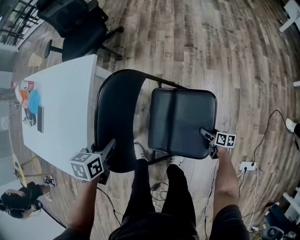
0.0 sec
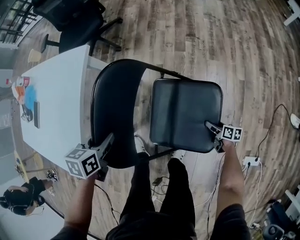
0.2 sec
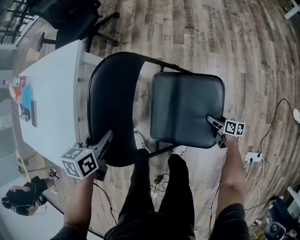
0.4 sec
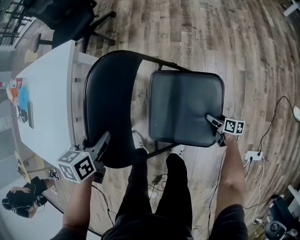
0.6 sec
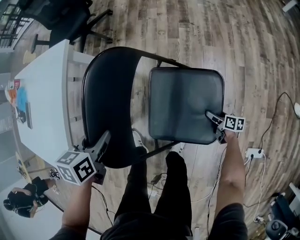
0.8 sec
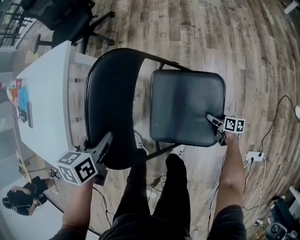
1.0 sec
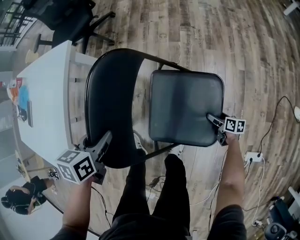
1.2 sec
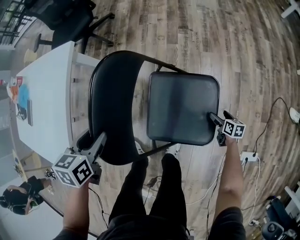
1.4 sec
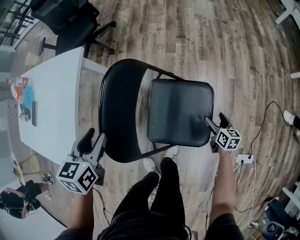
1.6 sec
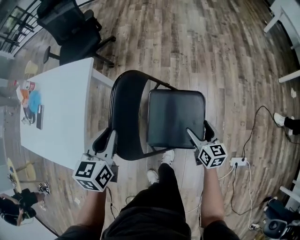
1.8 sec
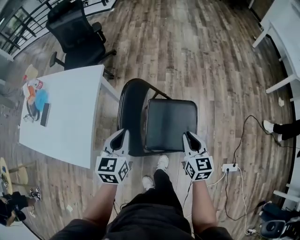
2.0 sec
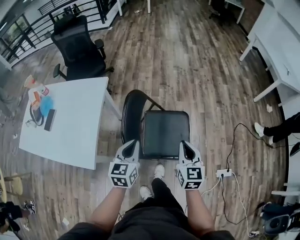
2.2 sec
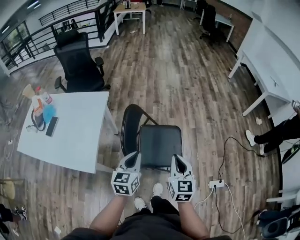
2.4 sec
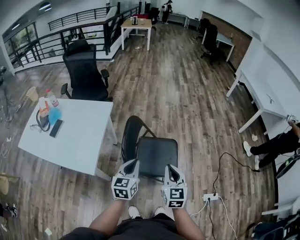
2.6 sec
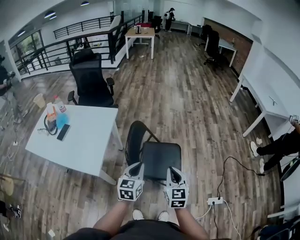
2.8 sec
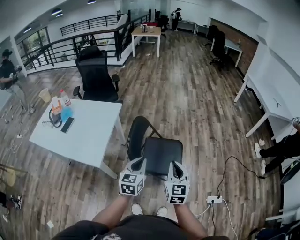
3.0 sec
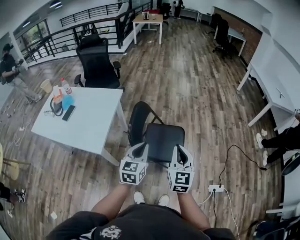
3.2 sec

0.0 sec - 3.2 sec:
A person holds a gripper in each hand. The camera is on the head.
0.0 sec - 1.6 sec: Both grippers move upward and to the right, approximately 10 cm. The right gripper changes its angle by roughly 30 degrees.
1.6 sec - 3.2 sec: The right gripper travels upward and backward by some 70 cm, tilts its fingers some 30 degrees upward, and closes up. Meanwhile the left gripper heads backward, upward and to the right, covering about 40 cm, changes its angle by some 30 degrees, and closes.

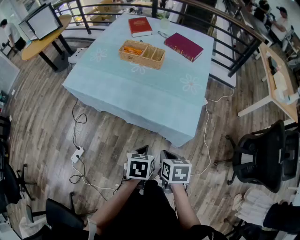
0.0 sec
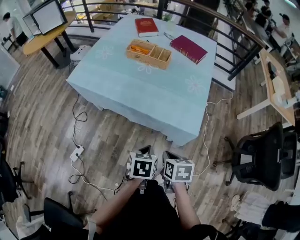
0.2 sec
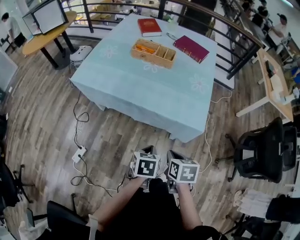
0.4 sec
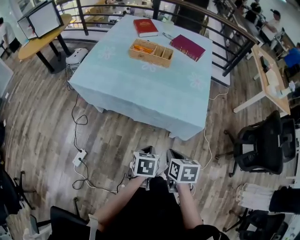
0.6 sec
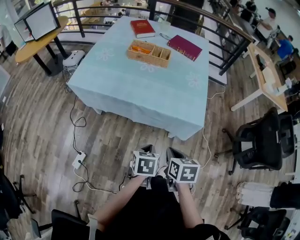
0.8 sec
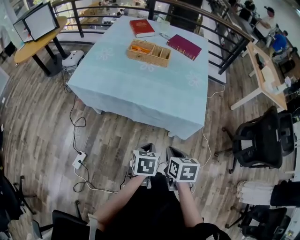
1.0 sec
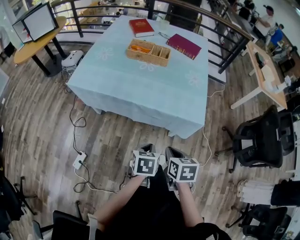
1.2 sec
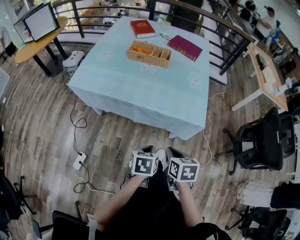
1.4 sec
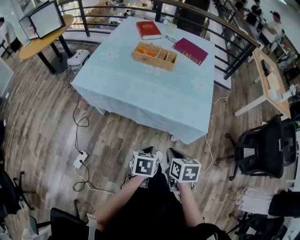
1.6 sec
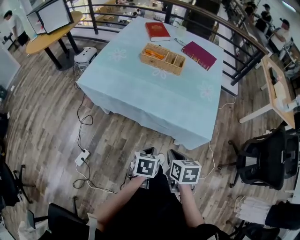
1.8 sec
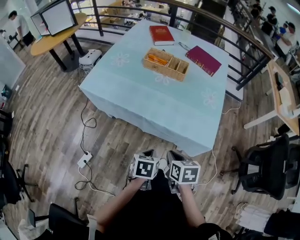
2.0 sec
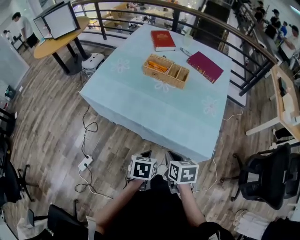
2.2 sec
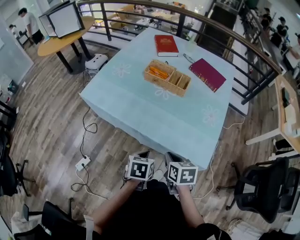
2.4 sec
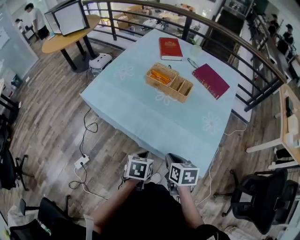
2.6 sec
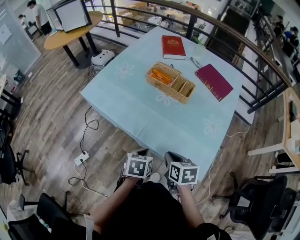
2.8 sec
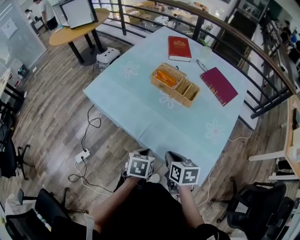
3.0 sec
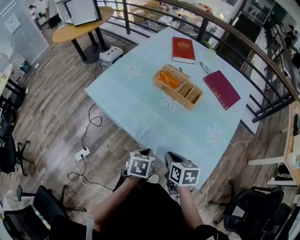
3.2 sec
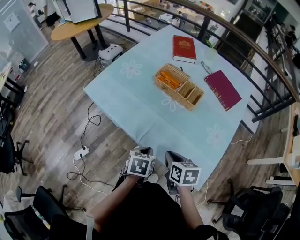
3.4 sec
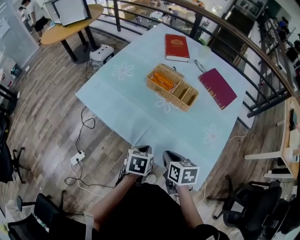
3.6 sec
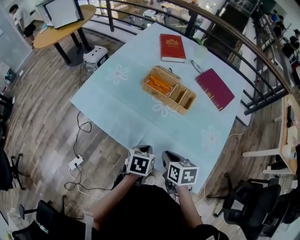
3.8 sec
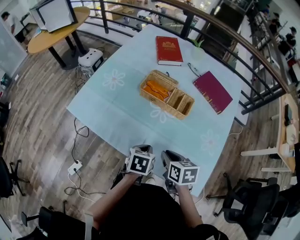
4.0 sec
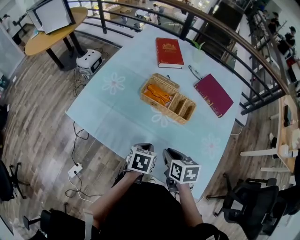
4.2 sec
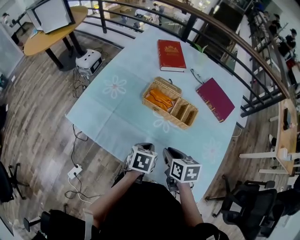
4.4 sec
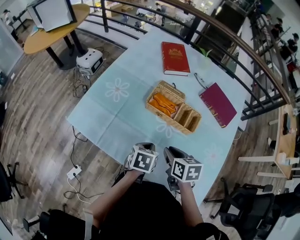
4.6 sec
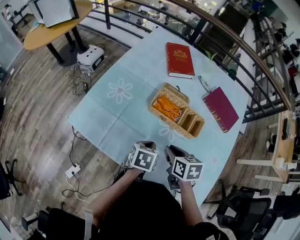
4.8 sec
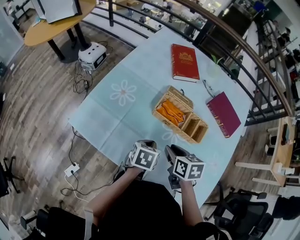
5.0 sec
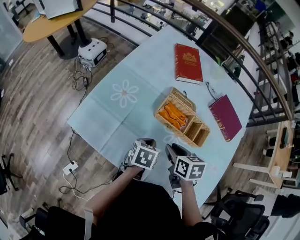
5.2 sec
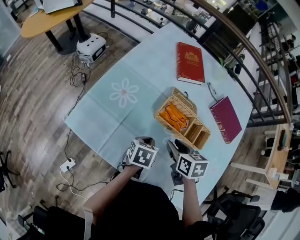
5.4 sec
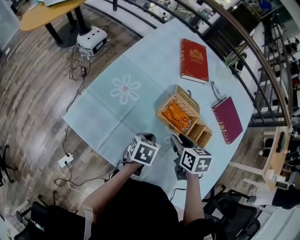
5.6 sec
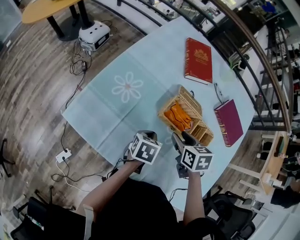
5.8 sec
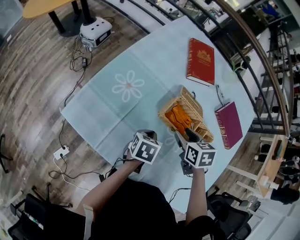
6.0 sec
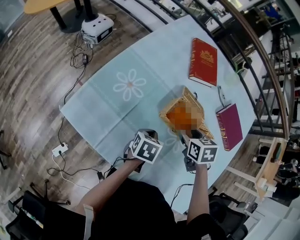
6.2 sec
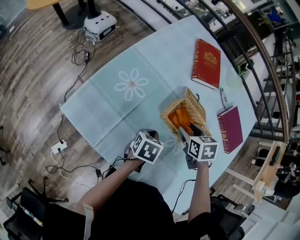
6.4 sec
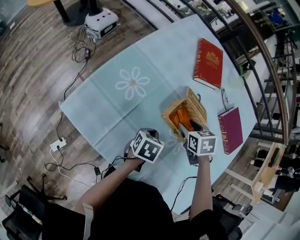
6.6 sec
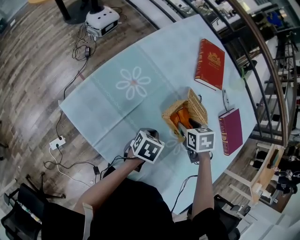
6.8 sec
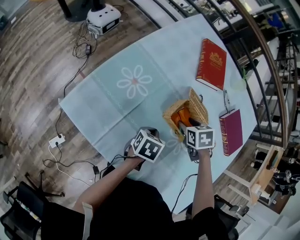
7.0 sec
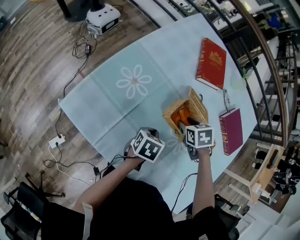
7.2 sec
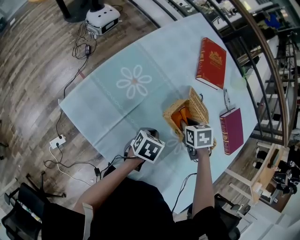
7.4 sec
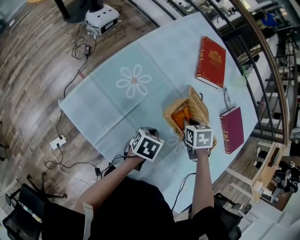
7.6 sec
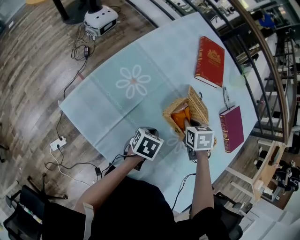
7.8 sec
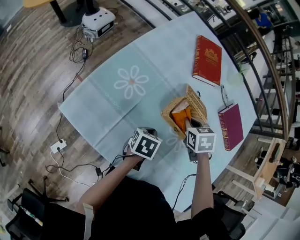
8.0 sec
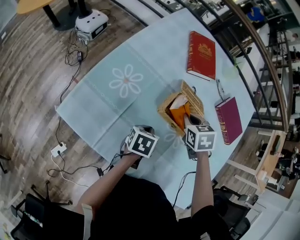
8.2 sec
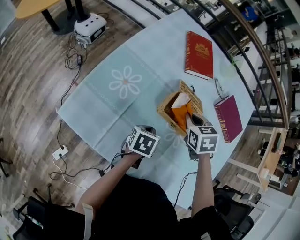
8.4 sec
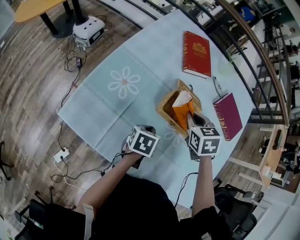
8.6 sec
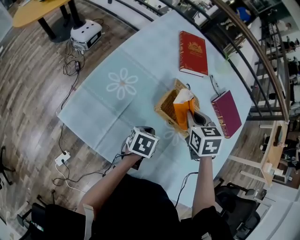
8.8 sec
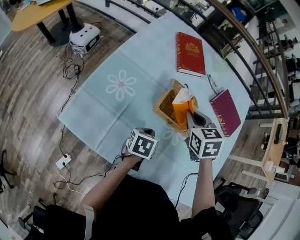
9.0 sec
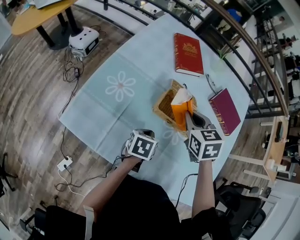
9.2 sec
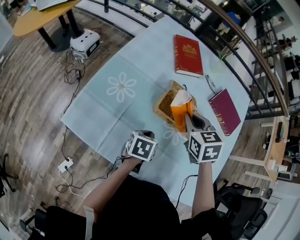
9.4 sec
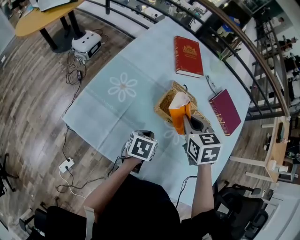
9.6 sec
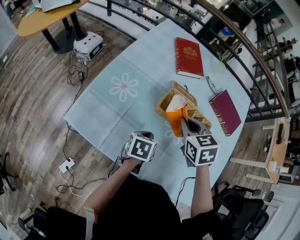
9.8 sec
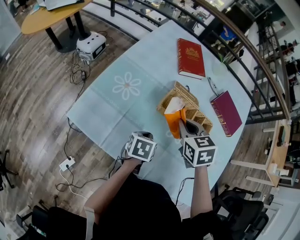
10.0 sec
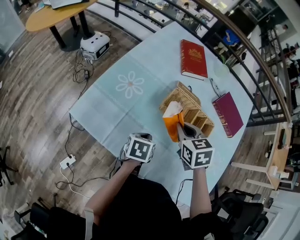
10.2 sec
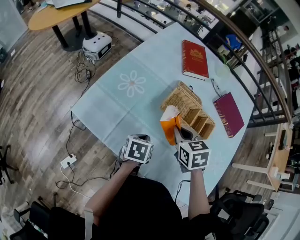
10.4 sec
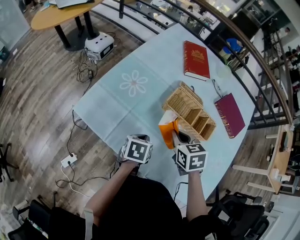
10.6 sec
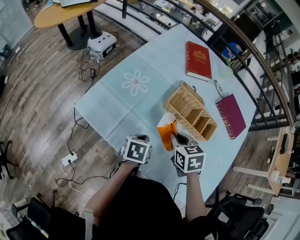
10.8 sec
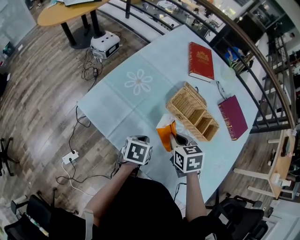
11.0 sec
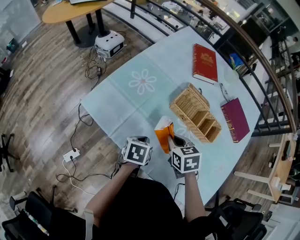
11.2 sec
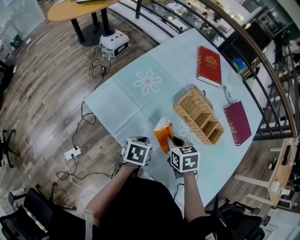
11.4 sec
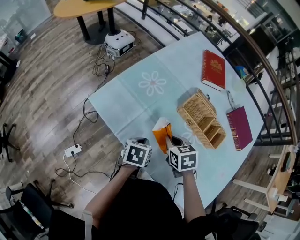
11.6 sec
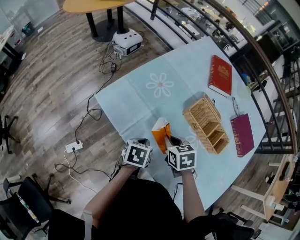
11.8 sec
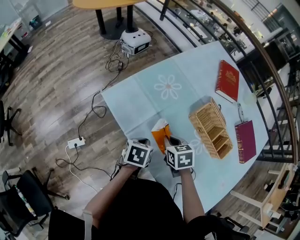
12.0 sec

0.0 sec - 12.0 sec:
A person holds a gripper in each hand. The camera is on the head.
0.0 sec - 1.6 sec: The grippers both shift to the left by about 10 cm.
1.6 sec - 3.0 sec: The grippers both shift forward by approximately 20 cm. The right gripper changes its angle by approximately 20 degrees.
3.0 sec - 4.4 sec: The grippers both shift forward by some 20 cm.
4.4 sec - 6.0 sec: The left gripper moves forward and to the left, some 15 cm, while the right gripper goes some 20 cm forward, and opens up.
6.0 sec - 7.6 sec: The right gripper travels downward and forward by approximately 10 cm, and closes.
7.6 sec - 9.0 sec: The right gripper moves upward, some 15 cm, and rotates approximately 20 degrees.
9.0 sec - 10.4 sec: The left gripper shifts some 5 cm backward, while the right gripper heads backward, covering roughly 10 cm.
10.4 sec - 12.0 sec: The right gripper is displaced to the left and downward by roughly 15 cm; the left gripper moves to the left, roughly 10 cm.

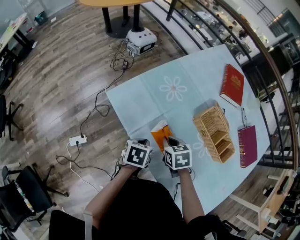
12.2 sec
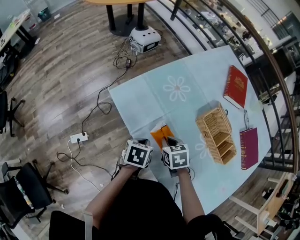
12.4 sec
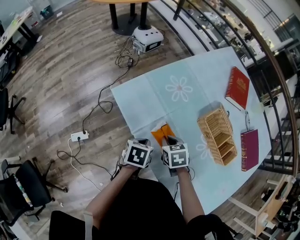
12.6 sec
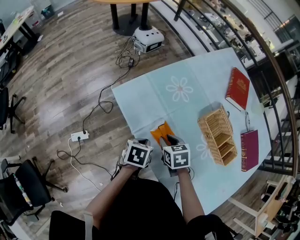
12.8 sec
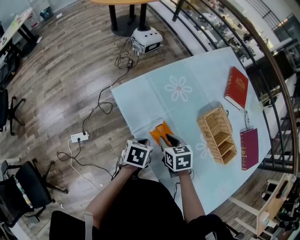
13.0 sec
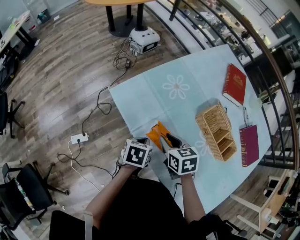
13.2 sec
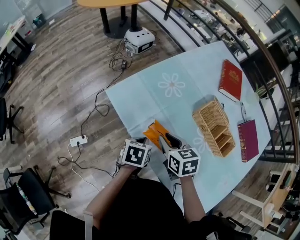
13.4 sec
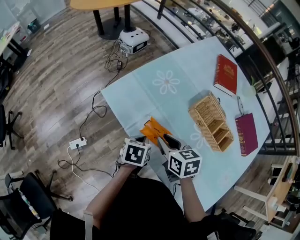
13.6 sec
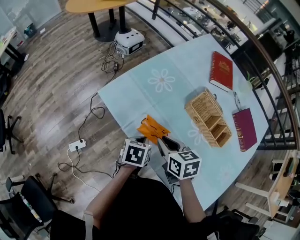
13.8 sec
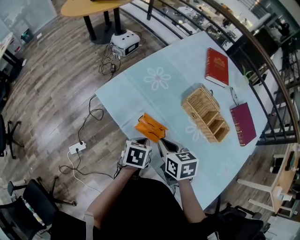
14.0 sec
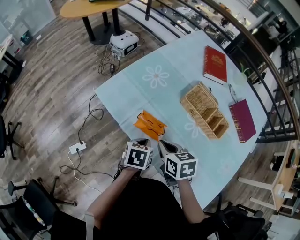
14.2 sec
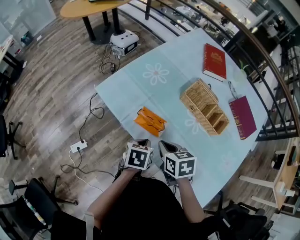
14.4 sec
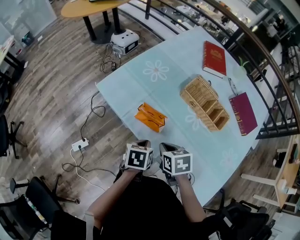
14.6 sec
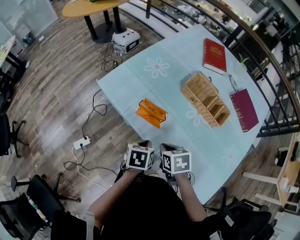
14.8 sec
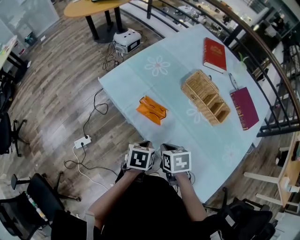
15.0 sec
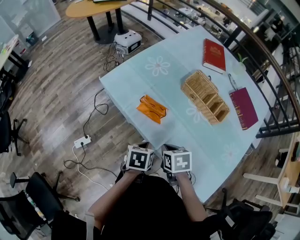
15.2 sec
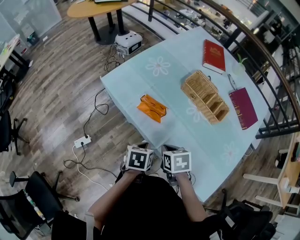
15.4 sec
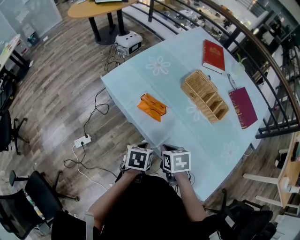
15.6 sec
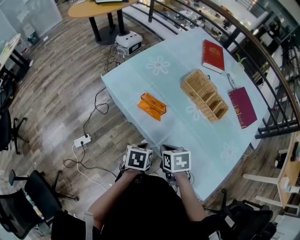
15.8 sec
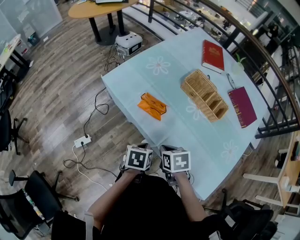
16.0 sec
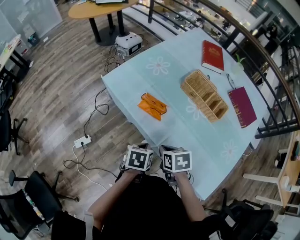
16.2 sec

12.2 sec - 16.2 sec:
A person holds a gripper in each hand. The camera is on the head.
12.2 sec - 13.6 sec: The right gripper shifts some 10 cm upward, and opens up.
13.6 sec - 14.8 sec: The two grippers go roughly 15 cm backward. The right gripper closes its fingers.
14.8 sec - 16.2 sec: The grippers both shift backward by approximately 5 cm.

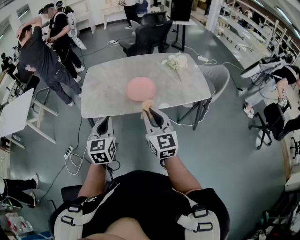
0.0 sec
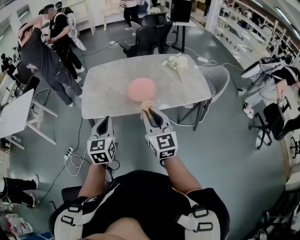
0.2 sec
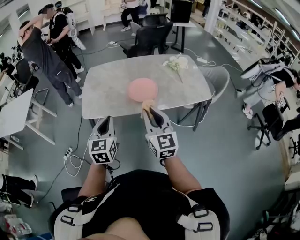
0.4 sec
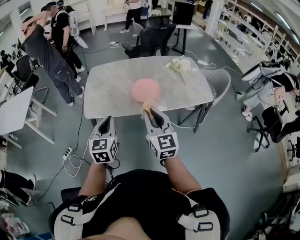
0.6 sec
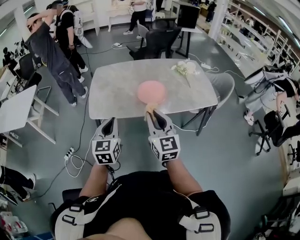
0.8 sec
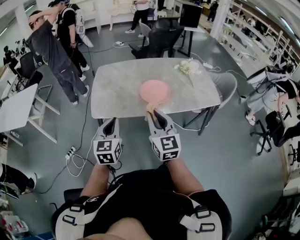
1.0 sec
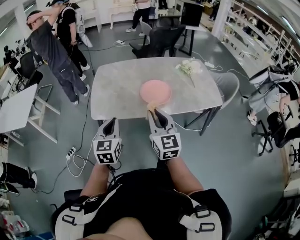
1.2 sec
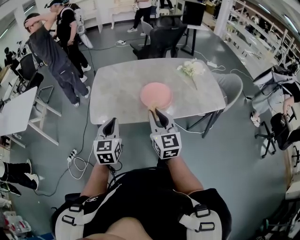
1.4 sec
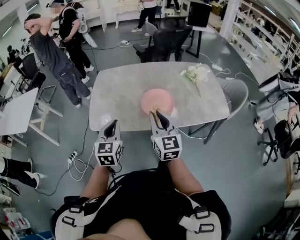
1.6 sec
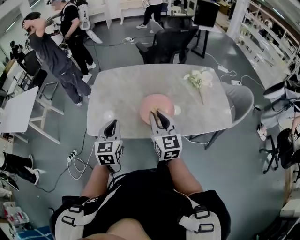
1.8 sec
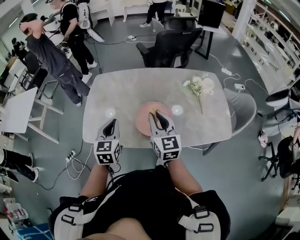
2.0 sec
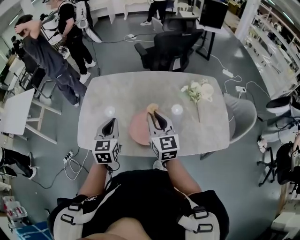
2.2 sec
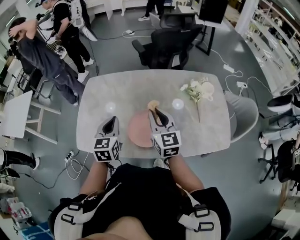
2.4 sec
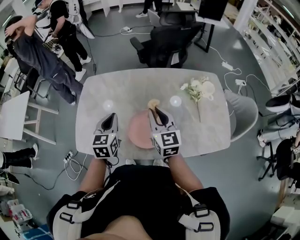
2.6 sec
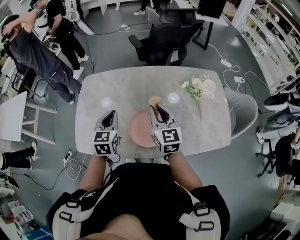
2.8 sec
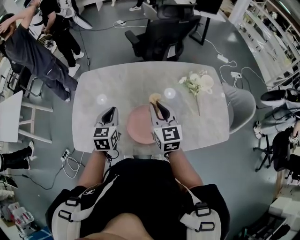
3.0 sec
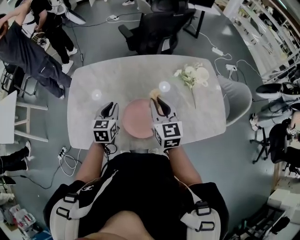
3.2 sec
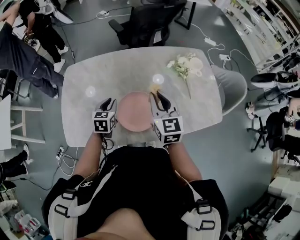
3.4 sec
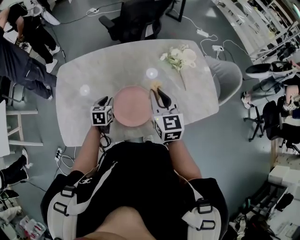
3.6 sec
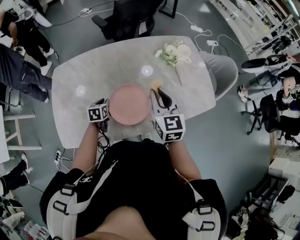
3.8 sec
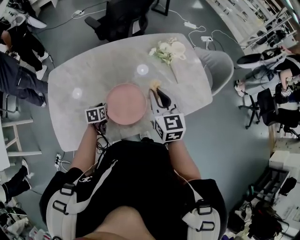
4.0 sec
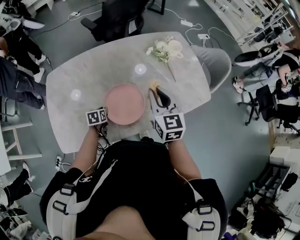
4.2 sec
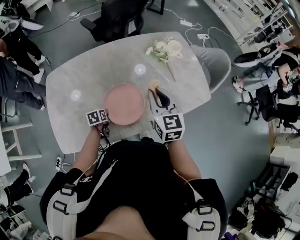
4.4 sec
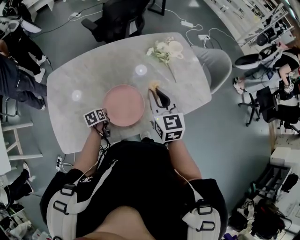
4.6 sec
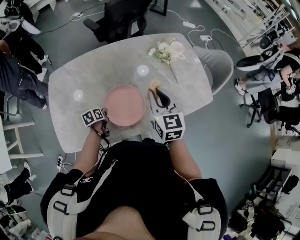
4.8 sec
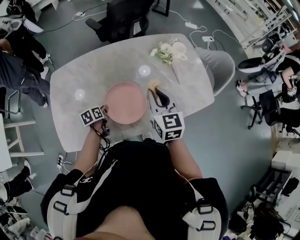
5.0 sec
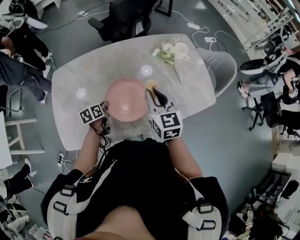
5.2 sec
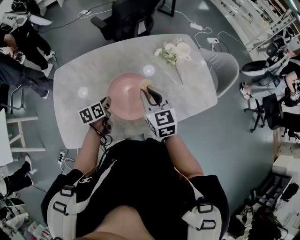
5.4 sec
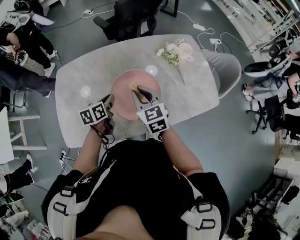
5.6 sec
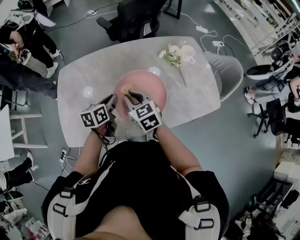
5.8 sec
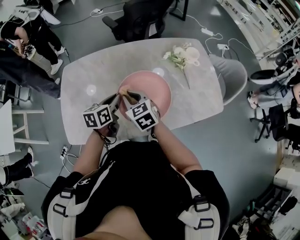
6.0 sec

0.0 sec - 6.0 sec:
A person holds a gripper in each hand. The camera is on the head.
0.0 sec - 1.6 sec: The grippers both shift forward by approximately 15 cm.
1.6 sec - 3.0 sec: The right gripper heads forward and to the right, covering about 30 cm. The left gripper travels forward by about 25 cm.
3.0 sec - 4.4 sec: The left gripper is displaced downward by about 25 cm, and angles its fingers downward, by some 30 degrees, while the right gripper shifts roughly 10 cm to the right and backward.
4.4 sec - 6.0 sec: The left gripper moves upward, roughly 20 cm, and changes its angle by some 30 degrees. Meanwhile the right gripper goes roughly 20 cm to the left and downward, and swivels some 30 degrees.
